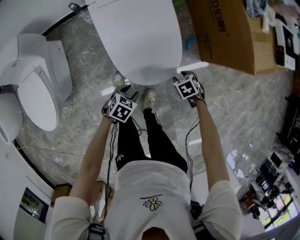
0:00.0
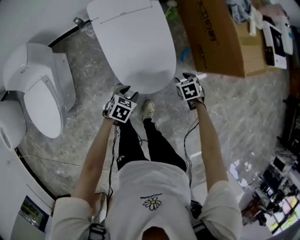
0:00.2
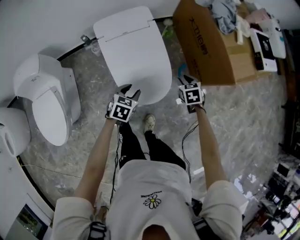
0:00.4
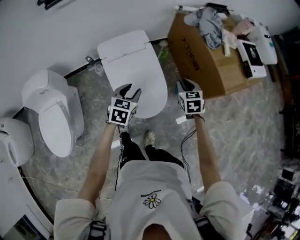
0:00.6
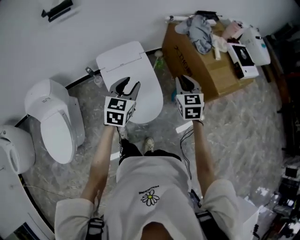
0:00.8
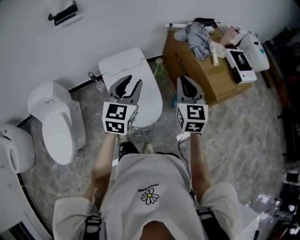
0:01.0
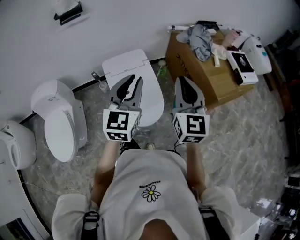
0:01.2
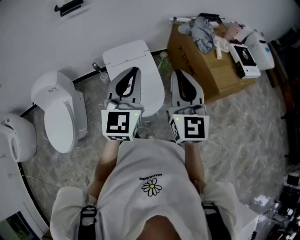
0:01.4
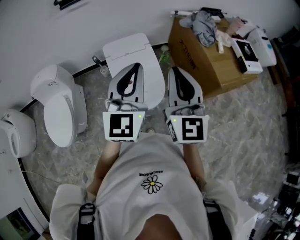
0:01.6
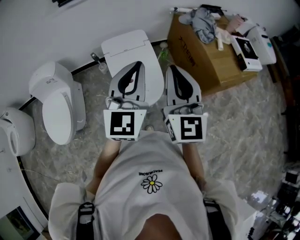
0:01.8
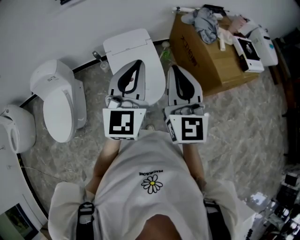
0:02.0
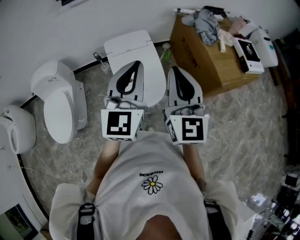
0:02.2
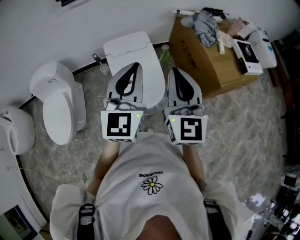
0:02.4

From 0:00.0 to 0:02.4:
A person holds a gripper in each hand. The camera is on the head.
From 0:00.0 to 0:01.2: Both grippers travel together upward, roughly 60 cm. The right gripper points its fingers roughly 80 degrees further upward, and closes its fingers. Meanwhile the left gripper tips its fingers upward by about 60 degrees.
From 0:01.2 to 0:02.4: Both grippers move backward, about 5 cm.

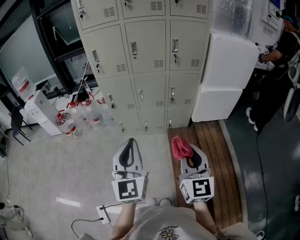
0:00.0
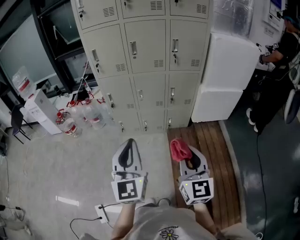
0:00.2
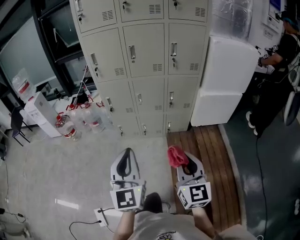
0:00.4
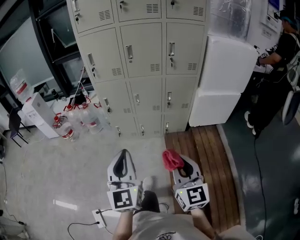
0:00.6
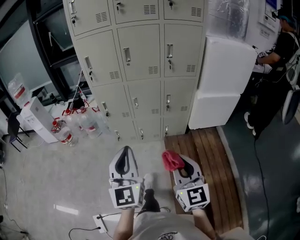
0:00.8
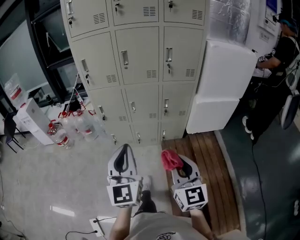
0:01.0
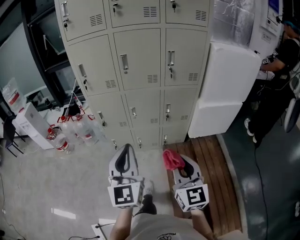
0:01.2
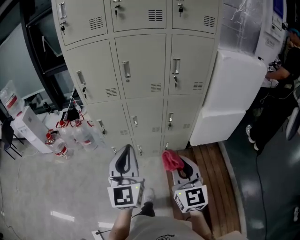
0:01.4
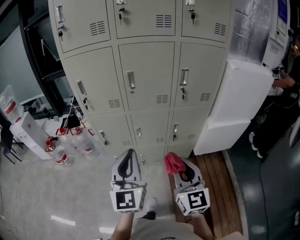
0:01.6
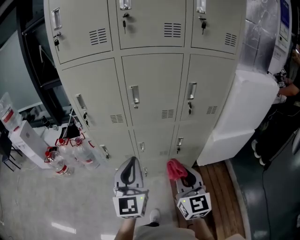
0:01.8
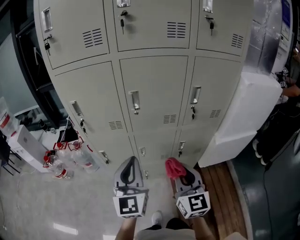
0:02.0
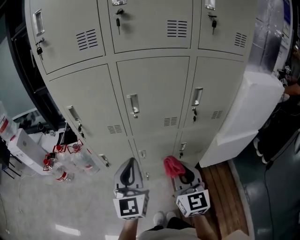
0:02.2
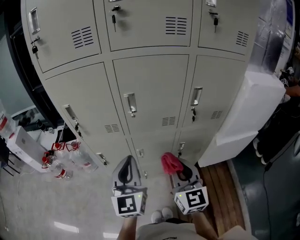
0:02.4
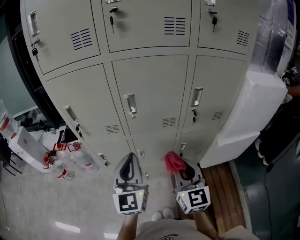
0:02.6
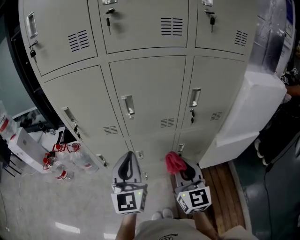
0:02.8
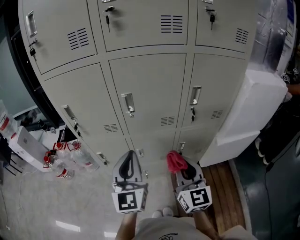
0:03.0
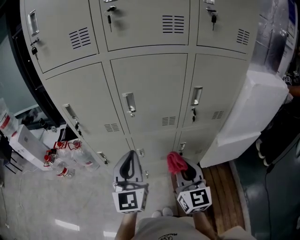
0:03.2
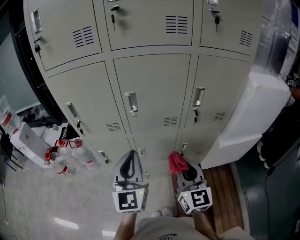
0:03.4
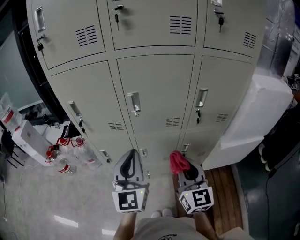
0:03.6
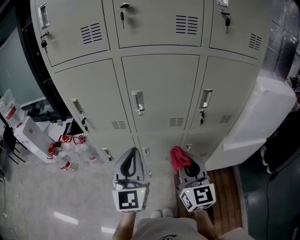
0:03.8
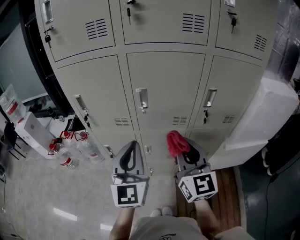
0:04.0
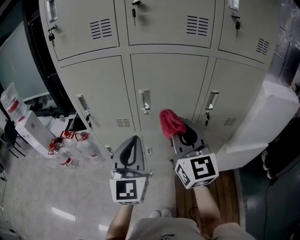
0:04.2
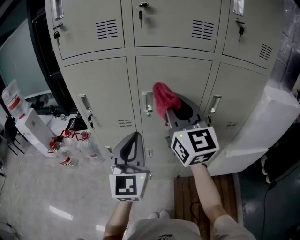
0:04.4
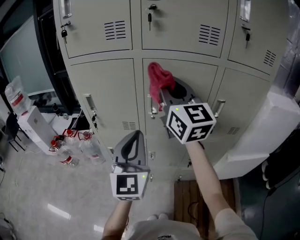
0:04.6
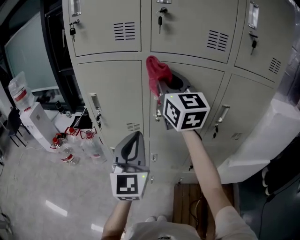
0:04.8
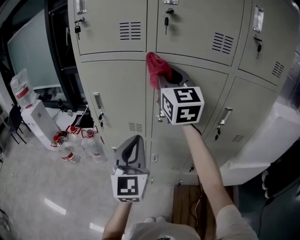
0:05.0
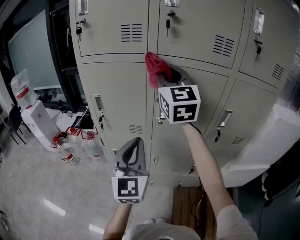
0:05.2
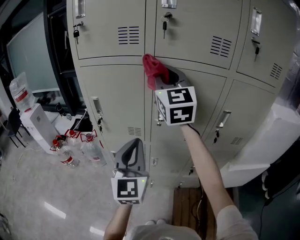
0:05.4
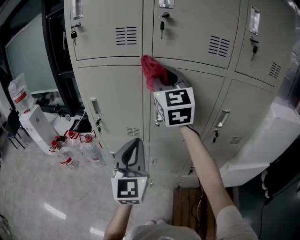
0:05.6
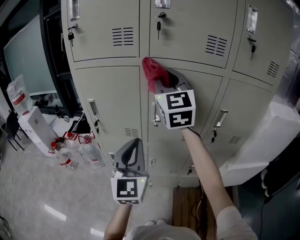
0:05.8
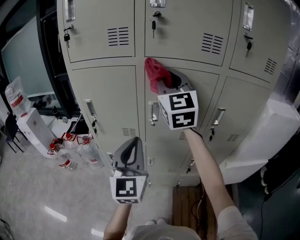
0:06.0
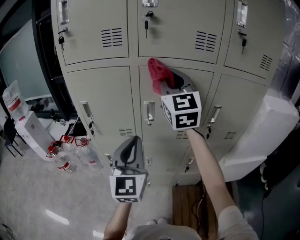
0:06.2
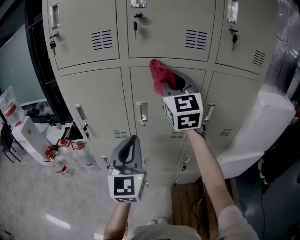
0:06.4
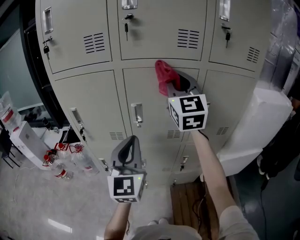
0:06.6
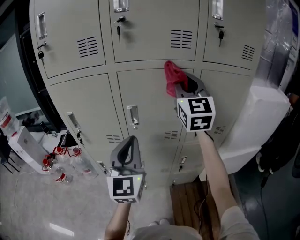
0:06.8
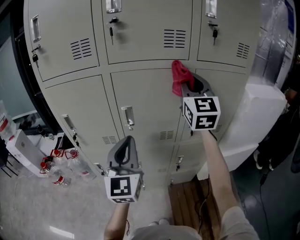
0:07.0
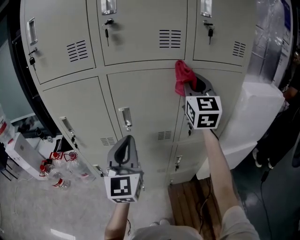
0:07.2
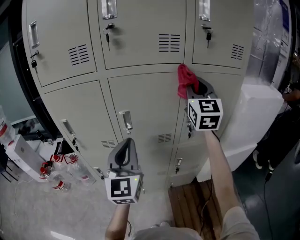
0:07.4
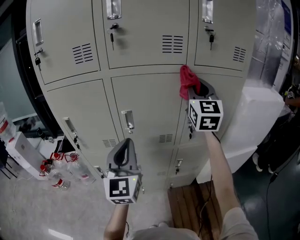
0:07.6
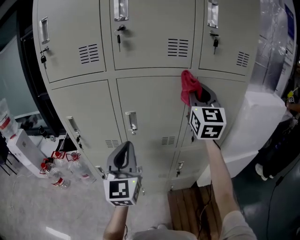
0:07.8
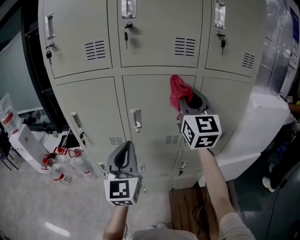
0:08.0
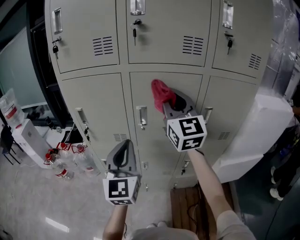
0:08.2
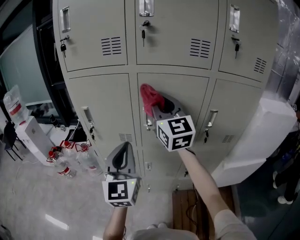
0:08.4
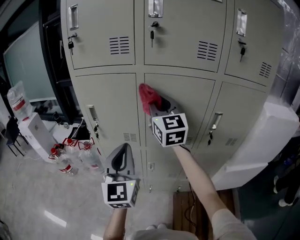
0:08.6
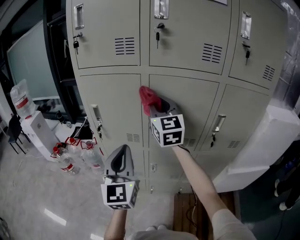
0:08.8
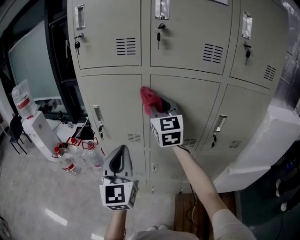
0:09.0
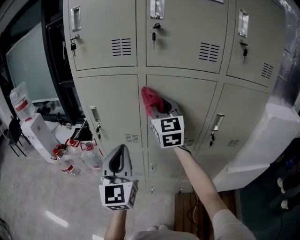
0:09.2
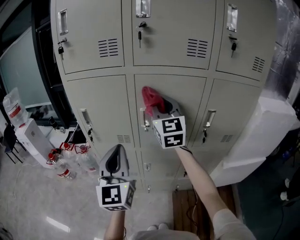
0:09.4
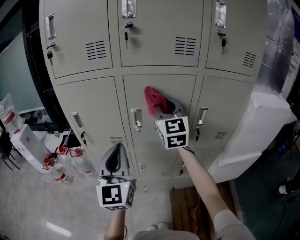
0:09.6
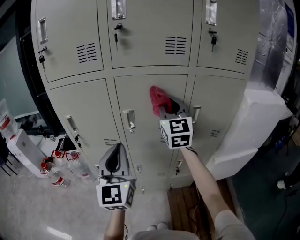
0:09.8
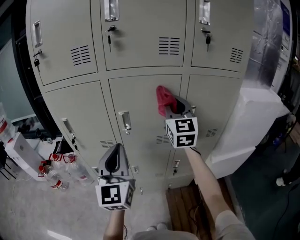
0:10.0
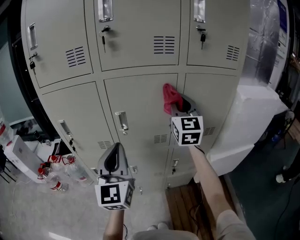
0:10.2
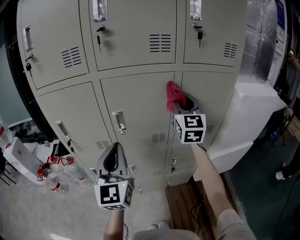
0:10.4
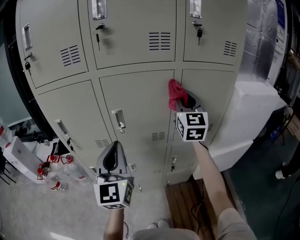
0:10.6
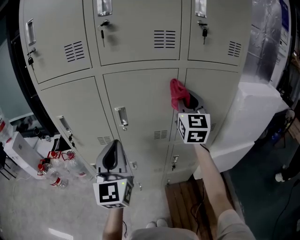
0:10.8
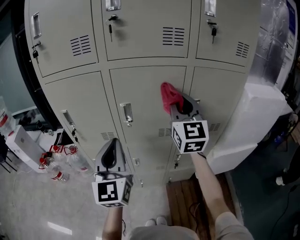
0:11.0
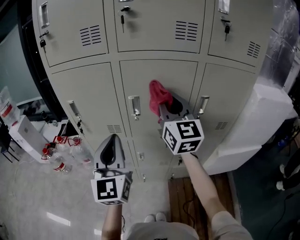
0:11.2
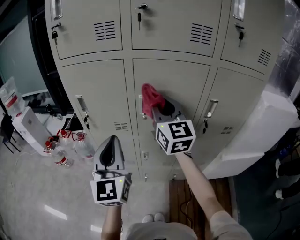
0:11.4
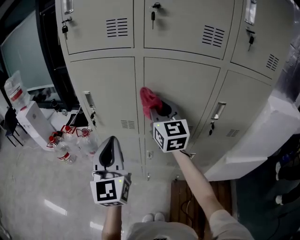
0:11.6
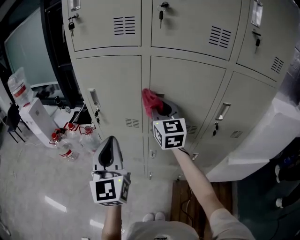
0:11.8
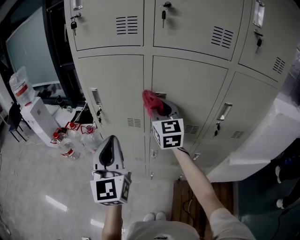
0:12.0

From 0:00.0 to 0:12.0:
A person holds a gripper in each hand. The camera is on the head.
From 0:00.0 to 0:01.6: The two grippers go some 30 cm forward.
From 0:01.6 to 0:03.0: Both grippers move forward, about 20 cm.
From 0:03.0 to 0:04.4: The right gripper is displaced upward, forward and to the left by approximately 25 cm, and rotates some 20 degrees; the left gripper is displaced upward by approximately 5 cm.
From 0:04.4 to 0:06.0: The right gripper travels forward and upward by some 15 cm.
From 0:06.0 to 0:07.6: The left gripper heads to the right, covering roughly 5 cm. The right gripper is displaced to the right by approximately 25 cm, and changes its angle by some 20 degrees.
From 0:07.6 to 0:09.0: The left gripper is displaced to the left by approximately 10 cm, while the right gripper shifts some 25 cm to the left, and rotates about 30 degrees.
From 0:09.0 to 0:10.4: The right gripper moves to the right, about 25 cm, and rotates some 20 degrees. The left gripper heads to the right, covering roughly 10 cm.
From 0:10.4 to 0:12.0: The right gripper goes about 25 cm to the left, and turns by about 30 degrees; the left gripper shifts roughly 15 cm to the left.

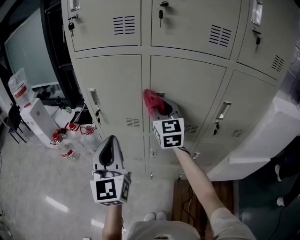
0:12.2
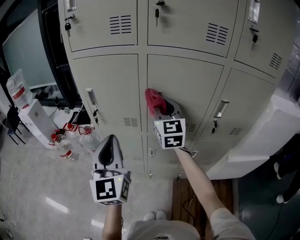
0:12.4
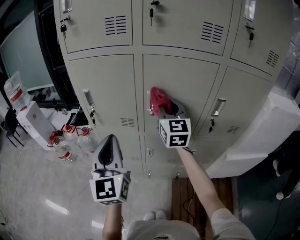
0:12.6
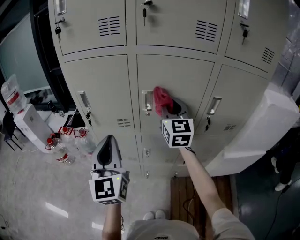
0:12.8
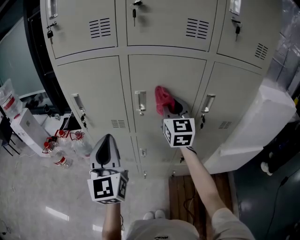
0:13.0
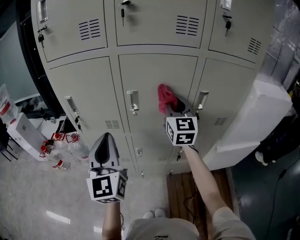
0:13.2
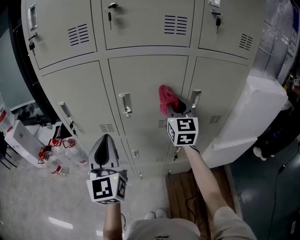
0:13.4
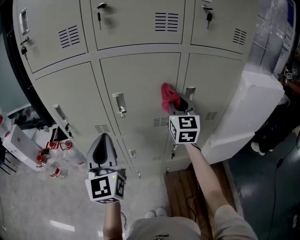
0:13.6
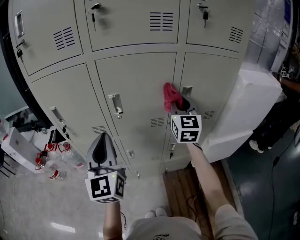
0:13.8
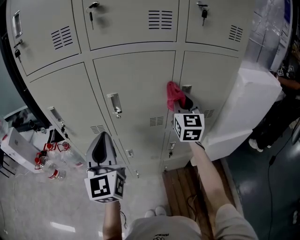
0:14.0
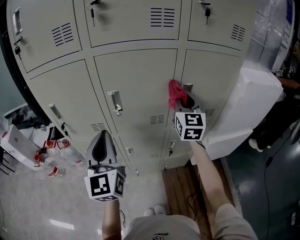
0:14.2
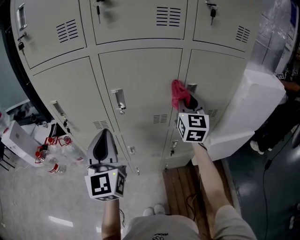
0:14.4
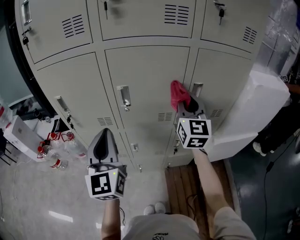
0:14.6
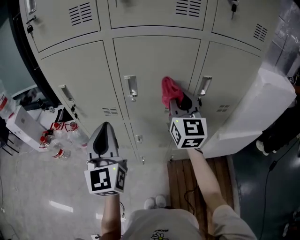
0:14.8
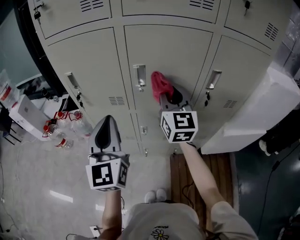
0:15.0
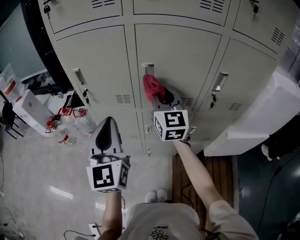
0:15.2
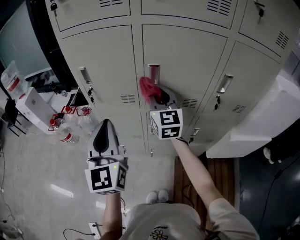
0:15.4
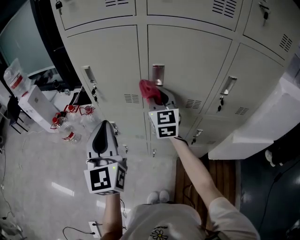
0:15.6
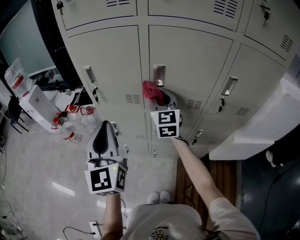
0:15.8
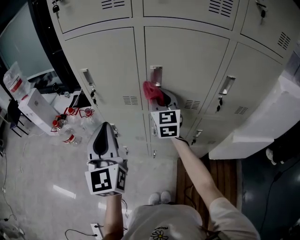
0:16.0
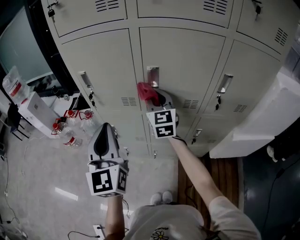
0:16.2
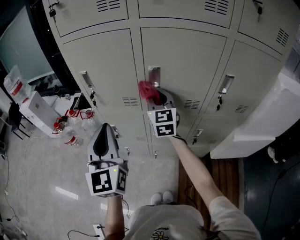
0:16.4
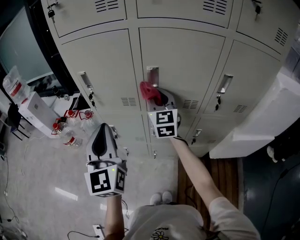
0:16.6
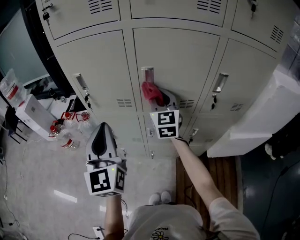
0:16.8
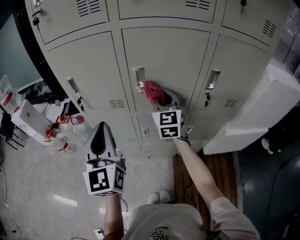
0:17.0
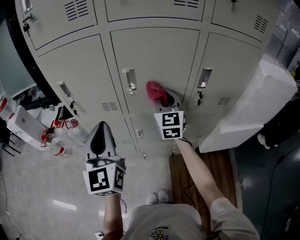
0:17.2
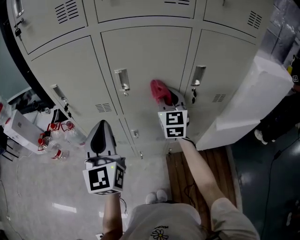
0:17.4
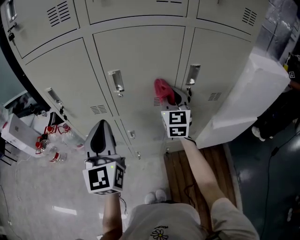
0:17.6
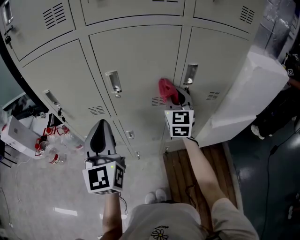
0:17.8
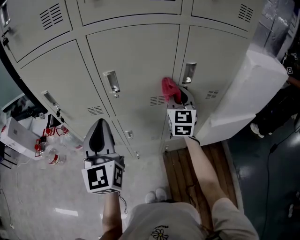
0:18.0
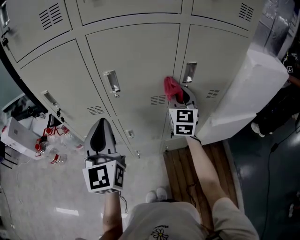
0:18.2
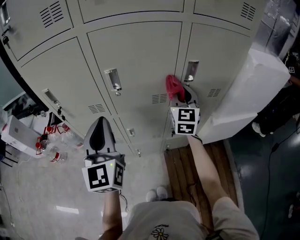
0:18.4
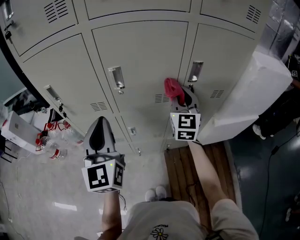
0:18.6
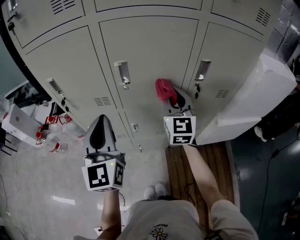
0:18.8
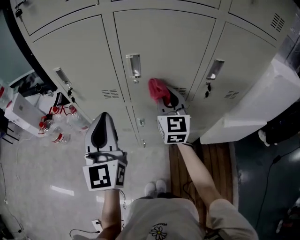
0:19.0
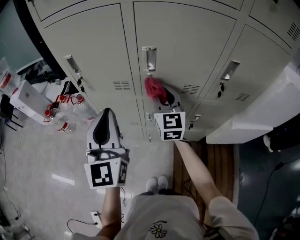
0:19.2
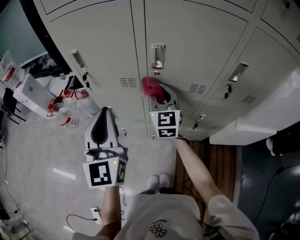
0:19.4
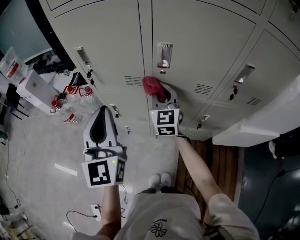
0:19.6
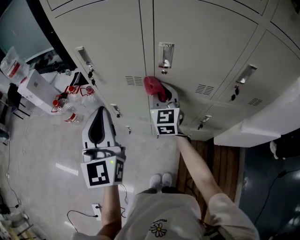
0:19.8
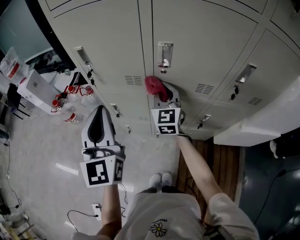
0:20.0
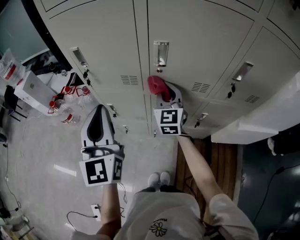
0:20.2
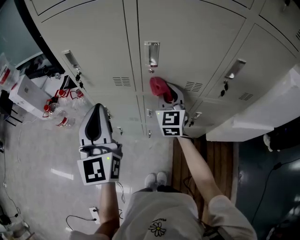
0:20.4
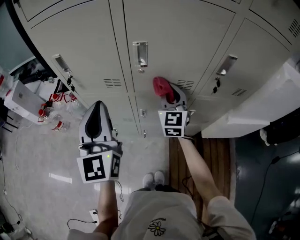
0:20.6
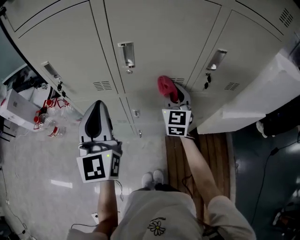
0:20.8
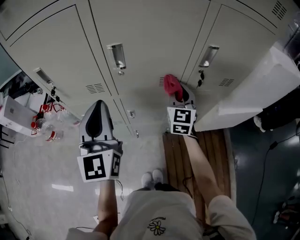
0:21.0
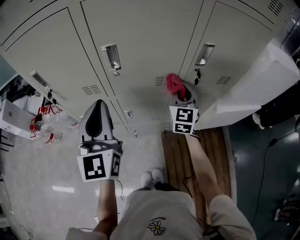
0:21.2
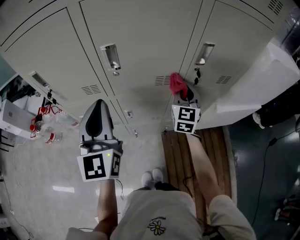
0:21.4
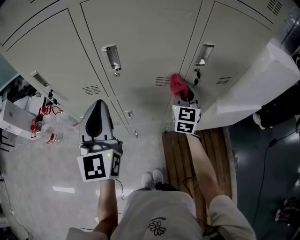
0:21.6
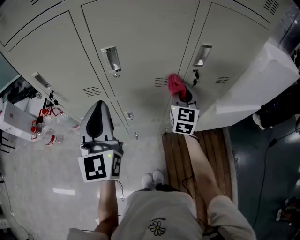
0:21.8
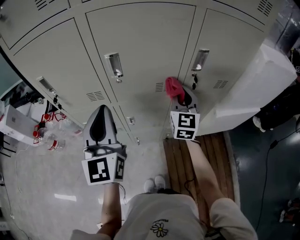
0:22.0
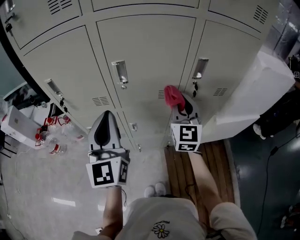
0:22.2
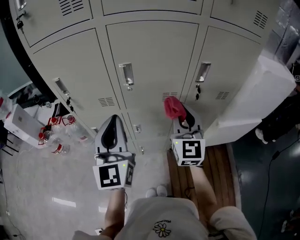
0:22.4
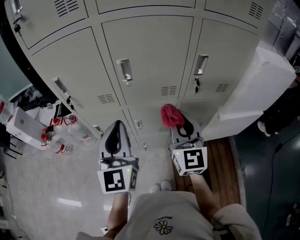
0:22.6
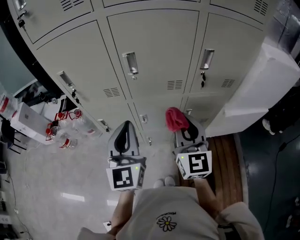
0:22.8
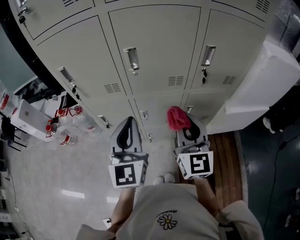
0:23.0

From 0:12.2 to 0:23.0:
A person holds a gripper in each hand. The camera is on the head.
From 0:12.2 to 0:13.8: The left gripper heads to the right, covering some 10 cm, while the right gripper heads to the right, covering some 25 cm, and rotates approximately 20 degrees.
From 0:13.8 to 0:15.2: The right gripper goes approximately 20 cm to the left, and swivels some 20 degrees; the left gripper shifts roughly 5 cm to the left.
From 0:15.2 to 0:16.8: The right gripper ends up approximately 5 cm from where it was.
From 0:16.8 to 0:18.4: The left gripper goes about 10 cm to the right. Meanwhile the right gripper moves to the right, roughly 20 cm, and swivels about 20 degrees.
From 0:18.4 to 0:20.0: The left gripper is displaced to the left by roughly 10 cm; the right gripper moves to the left, about 25 cm, and turns by approximately 20 degrees.
From 0:20.0 to 0:21.4: The left gripper travels to the right and forward by about 15 cm. Meanwhile the right gripper is displaced to the right by about 25 cm, and rotates roughly 30 degrees.
From 0:21.4 to 0:23.0: The left gripper shifts about 10 cm backward. Meanwhile the right gripper is displaced backward and to the left by some 20 cm.
